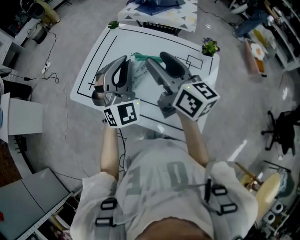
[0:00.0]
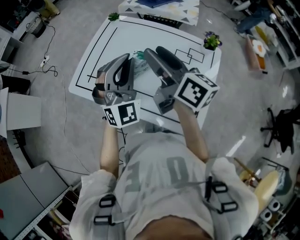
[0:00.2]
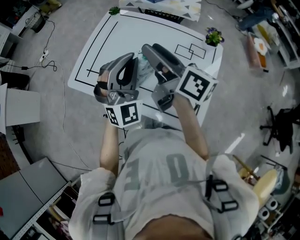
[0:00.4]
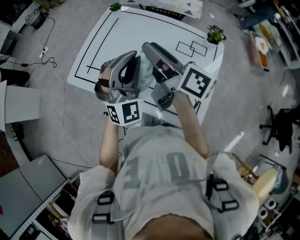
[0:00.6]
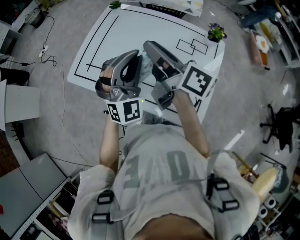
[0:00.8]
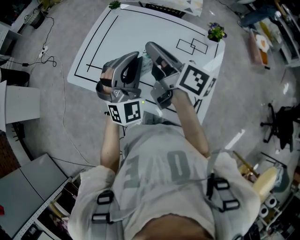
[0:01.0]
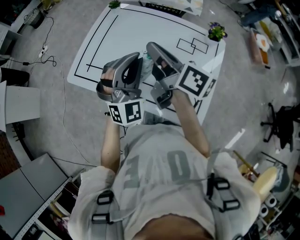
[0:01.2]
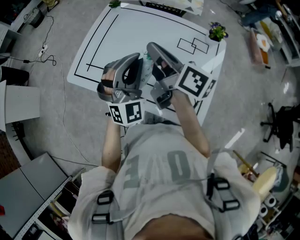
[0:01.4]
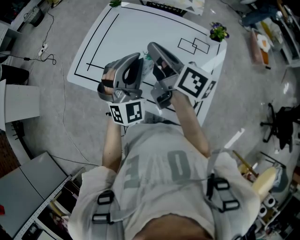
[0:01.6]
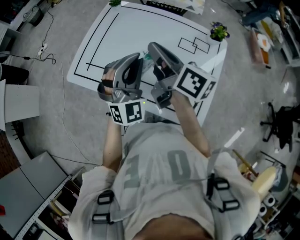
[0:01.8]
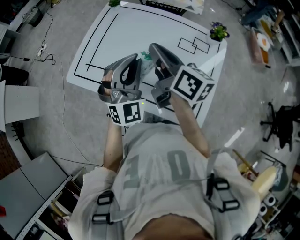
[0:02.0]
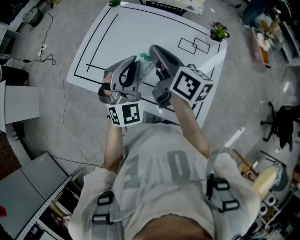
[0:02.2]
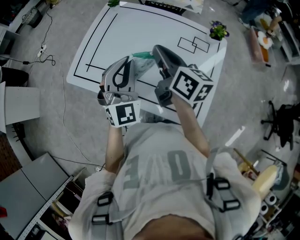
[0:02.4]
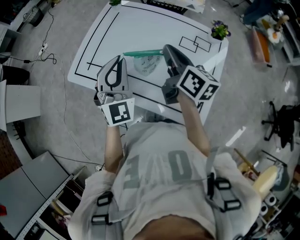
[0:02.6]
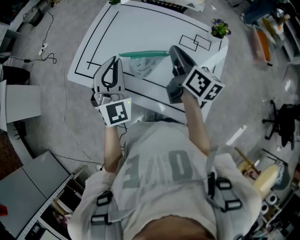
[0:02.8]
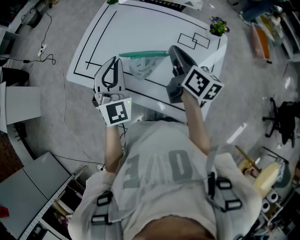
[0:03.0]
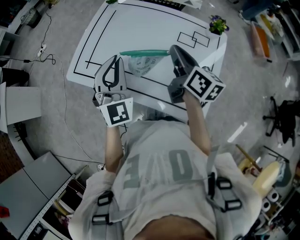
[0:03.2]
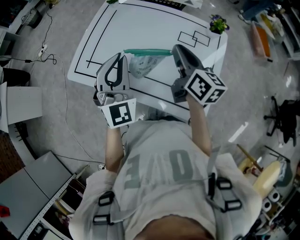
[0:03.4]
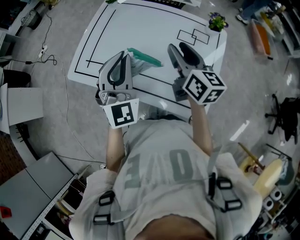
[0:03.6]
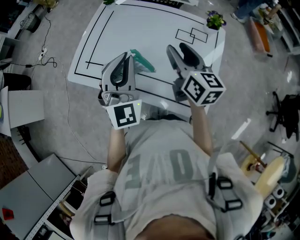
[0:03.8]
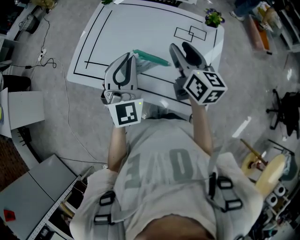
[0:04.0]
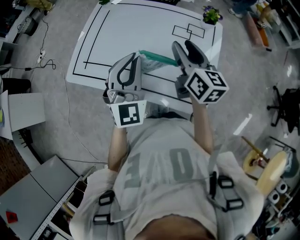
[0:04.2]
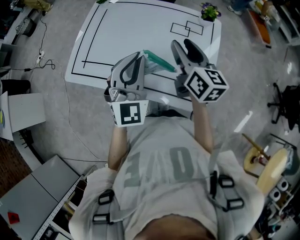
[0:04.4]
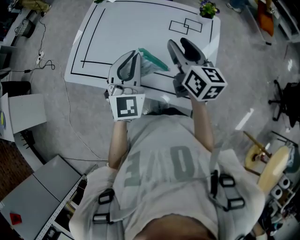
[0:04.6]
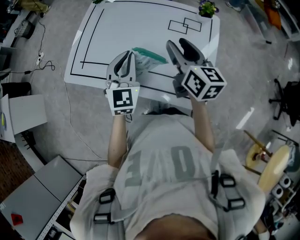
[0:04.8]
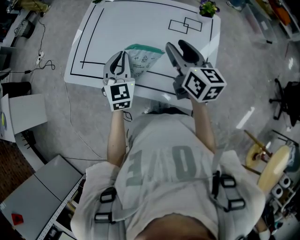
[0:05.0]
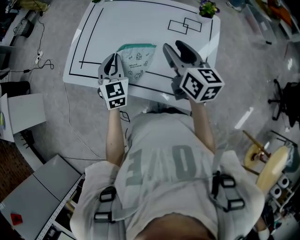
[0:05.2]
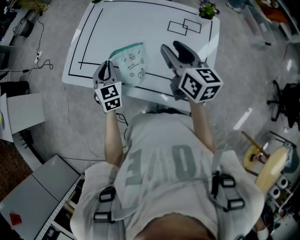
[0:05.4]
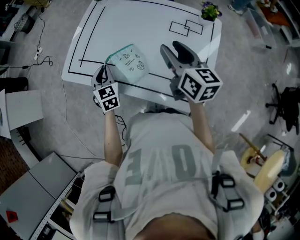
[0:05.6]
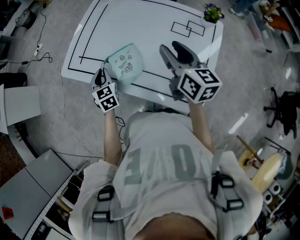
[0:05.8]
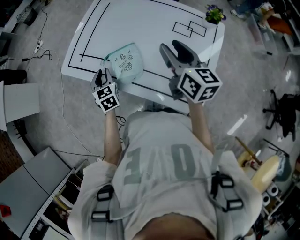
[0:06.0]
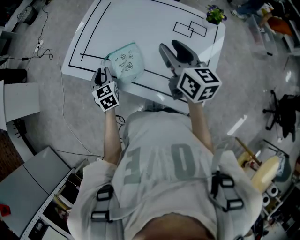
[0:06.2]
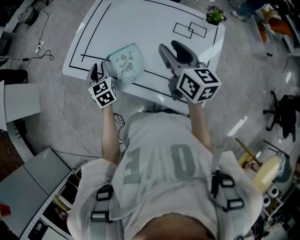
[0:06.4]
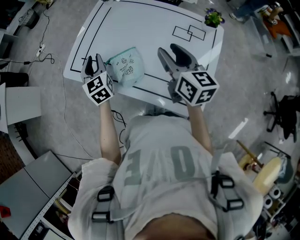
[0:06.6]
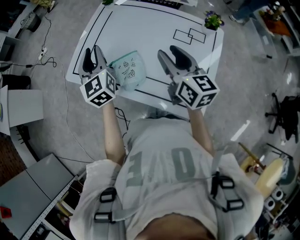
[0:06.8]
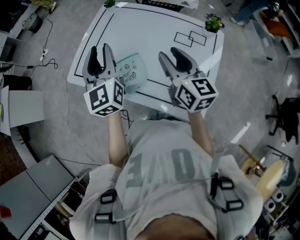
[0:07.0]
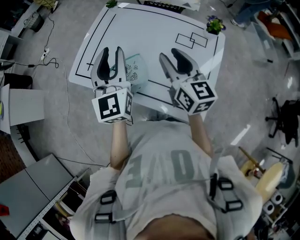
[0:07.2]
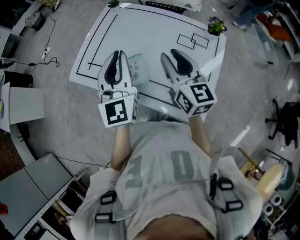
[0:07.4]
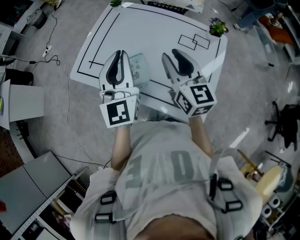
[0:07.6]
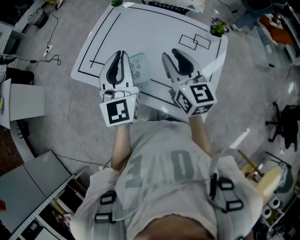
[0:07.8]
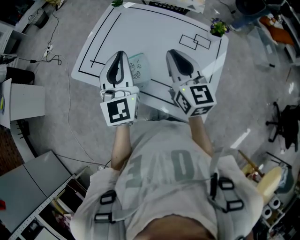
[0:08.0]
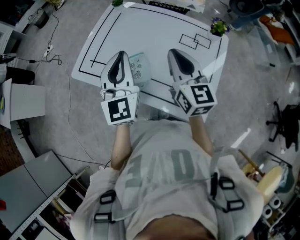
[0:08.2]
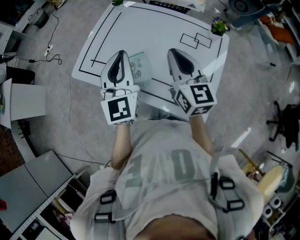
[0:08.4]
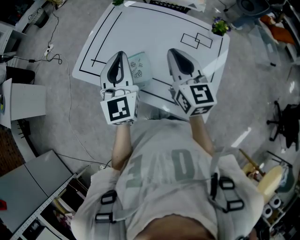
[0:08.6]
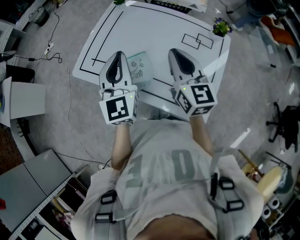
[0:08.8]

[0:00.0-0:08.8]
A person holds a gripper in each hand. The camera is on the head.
0:00.0 to 0:01.4: The right gripper moves roughly 5 cm, turns by roughly 20 degrees, and closes its fingers; the left gripper shifts about 5 cm downward.
0:01.4 to 0:03.0: The right gripper moves to the right and downward, approximately 10 cm, while the left gripper shifts about 5 cm to the left, and changes its angle by about 20 degrees.
0:03.0 to 0:04.4: The right gripper ends up roughly 5 cm from where it was, and opens its fingers. The left gripper goes about 10 cm to the right.
0:04.4 to 0:05.8: The left gripper travels downward and to the left by approximately 30 cm, and swivels about 50 degrees.
0:05.8 to 0:07.4: The left gripper moves upward and to the right, approximately 30 cm, tips its fingers upward by about 40 degrees, and opens, then closes once more.
0:07.4 to 0:08.8: The right gripper closes its fingers.

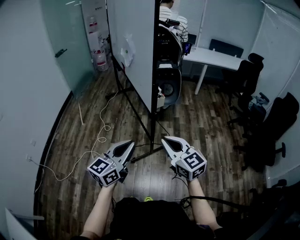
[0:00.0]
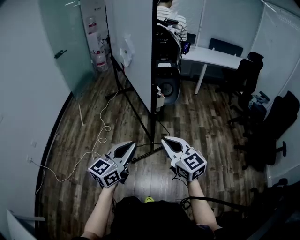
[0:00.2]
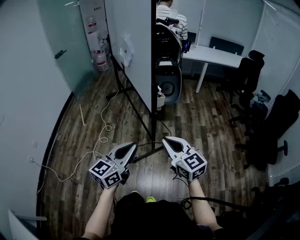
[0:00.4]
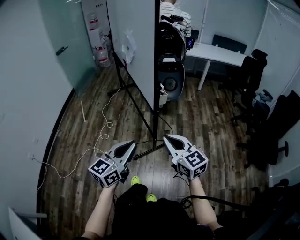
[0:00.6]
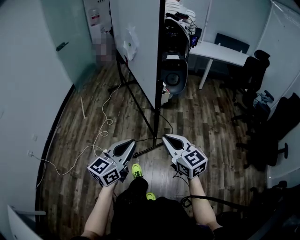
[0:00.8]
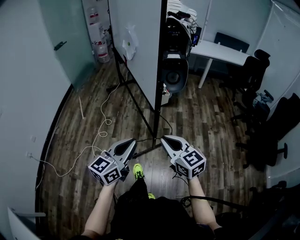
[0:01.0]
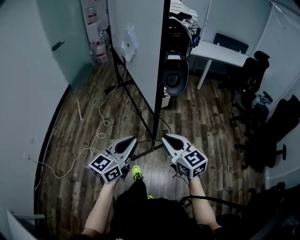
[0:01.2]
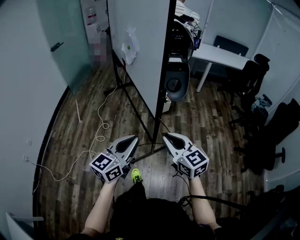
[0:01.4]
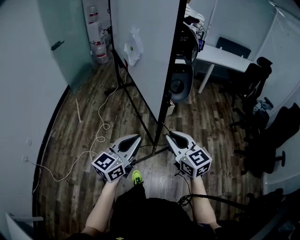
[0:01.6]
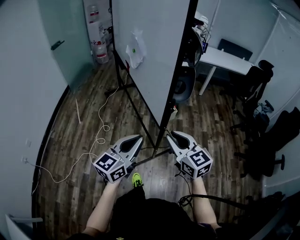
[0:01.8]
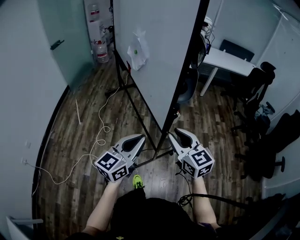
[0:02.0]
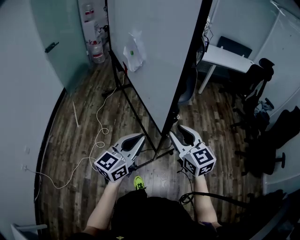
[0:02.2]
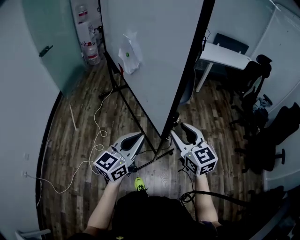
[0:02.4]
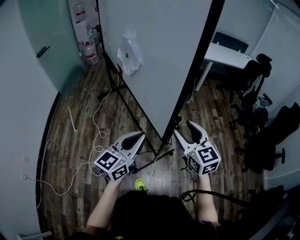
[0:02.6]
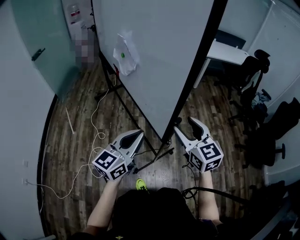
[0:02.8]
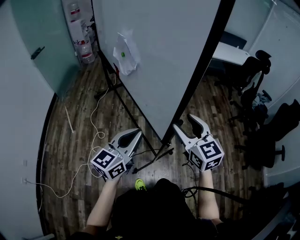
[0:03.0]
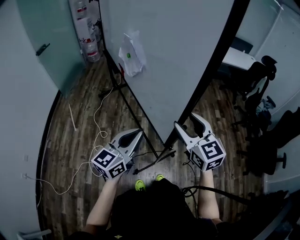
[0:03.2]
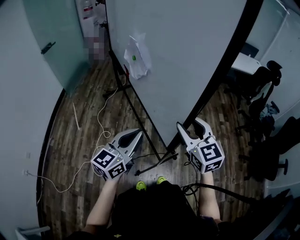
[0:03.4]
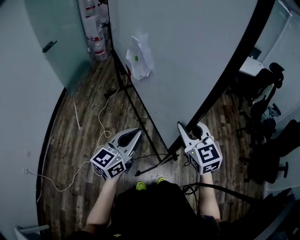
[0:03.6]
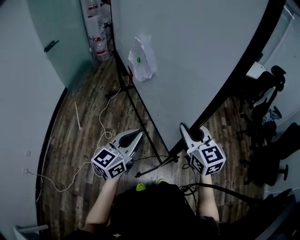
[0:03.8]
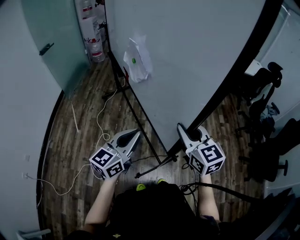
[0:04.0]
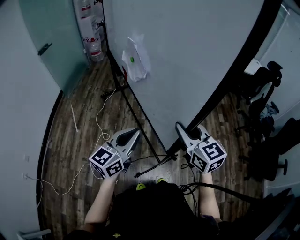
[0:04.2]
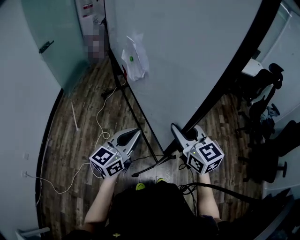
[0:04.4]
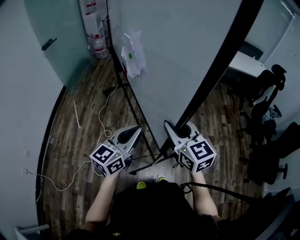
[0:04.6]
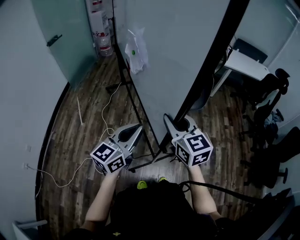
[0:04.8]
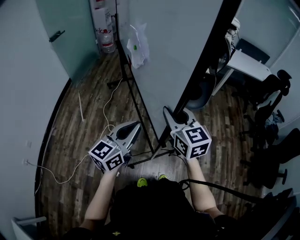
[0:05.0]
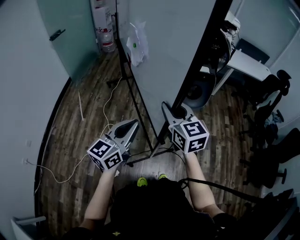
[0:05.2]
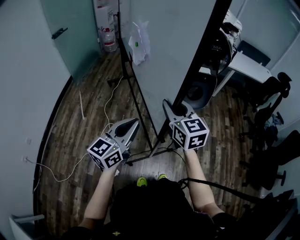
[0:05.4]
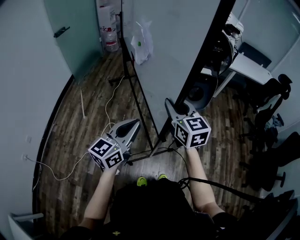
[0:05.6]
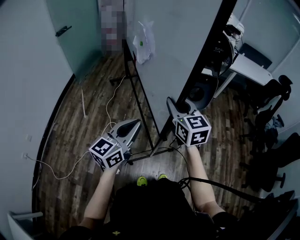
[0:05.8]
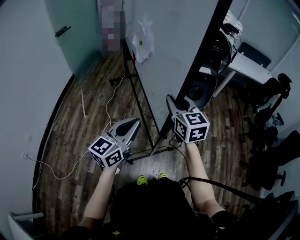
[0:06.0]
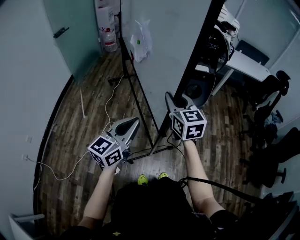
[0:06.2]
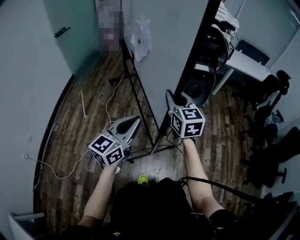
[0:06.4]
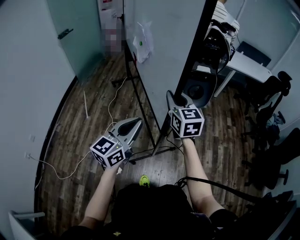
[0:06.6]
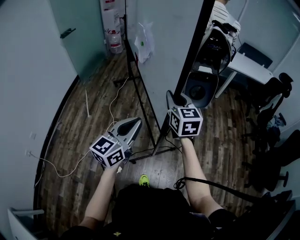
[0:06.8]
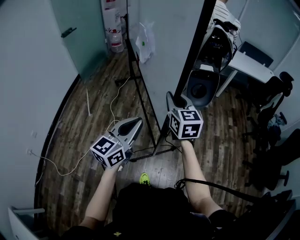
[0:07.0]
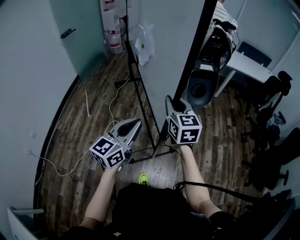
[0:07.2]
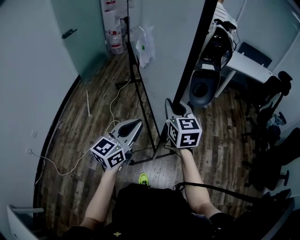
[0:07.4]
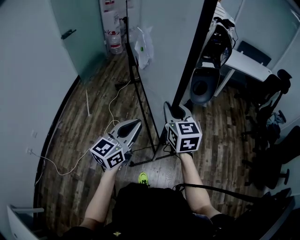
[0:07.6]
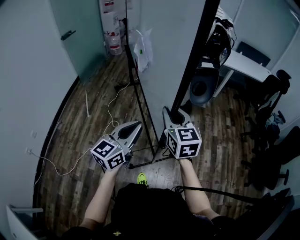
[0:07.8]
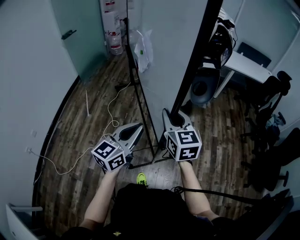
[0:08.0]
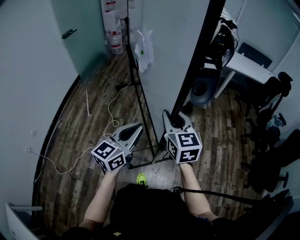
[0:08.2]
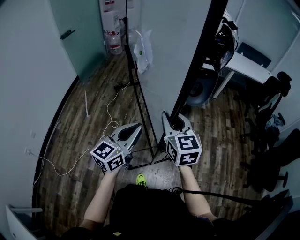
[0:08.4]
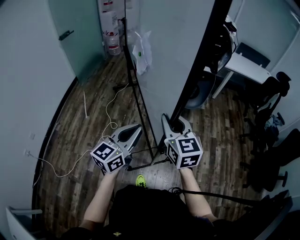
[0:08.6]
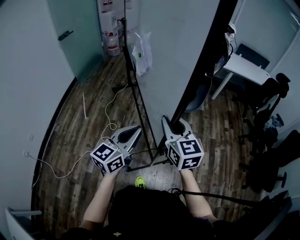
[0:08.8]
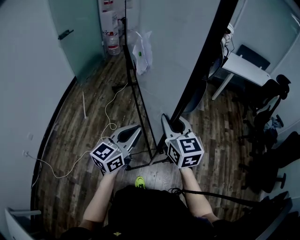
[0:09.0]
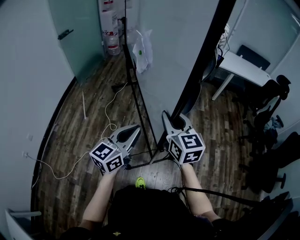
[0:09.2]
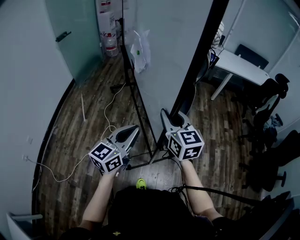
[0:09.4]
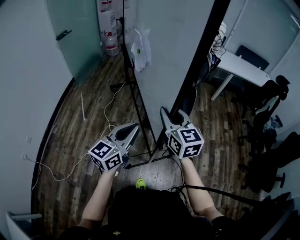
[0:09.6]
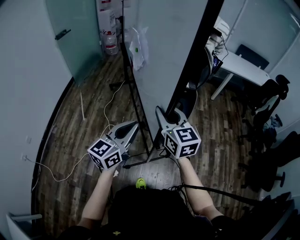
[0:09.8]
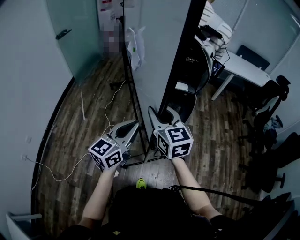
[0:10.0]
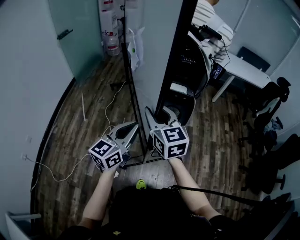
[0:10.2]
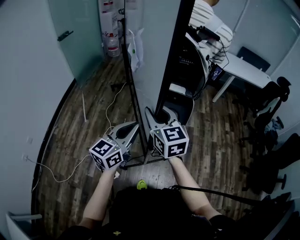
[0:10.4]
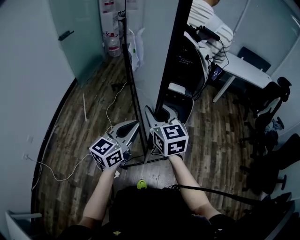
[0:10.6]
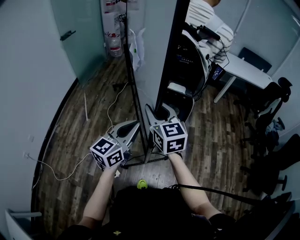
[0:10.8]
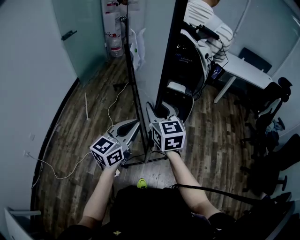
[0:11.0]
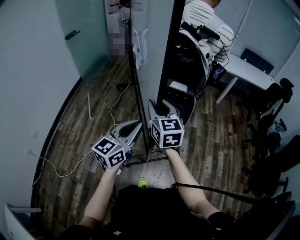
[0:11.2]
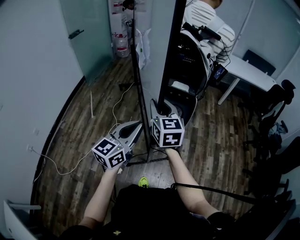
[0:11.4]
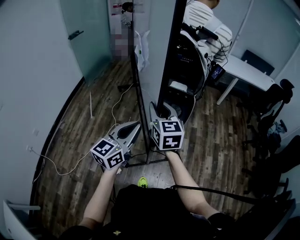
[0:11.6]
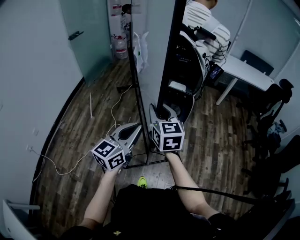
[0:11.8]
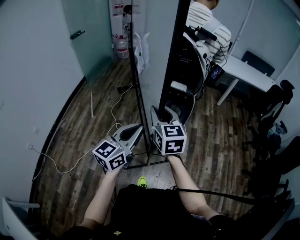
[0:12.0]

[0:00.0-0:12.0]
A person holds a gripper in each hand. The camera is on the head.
0:00.0 to 0:01.6: Both grippers travel together forward, about 10 cm.
0:01.6 to 0:03.0: Both grippers move forward, approximately 15 cm. The right gripper opens its fingers.
0:03.0 to 0:04.4: The grippers both shift forward by approximately 5 cm. The right gripper closes its fingers.
0:04.4 to 0:06.0: The right gripper is displaced to the left and forward by about 10 cm, while the left gripper heads to the left, covering approximately 10 cm.
0:06.0 to 0:07.6: The left gripper goes approximately 10 cm backward and to the right. The right gripper shifts approximately 10 cm backward.
0:07.6 to 0:09.0: The grippers stay close to where they were, moving slightly.
0:09.0 to 0:10.4: The right gripper is displaced to the left by some 10 cm; the left gripper changes place by about 5 cm.
0:10.4 to 0:12.0: The left gripper is displaced backward by about 10 cm, while the right gripper shifts about 5 cm backward.

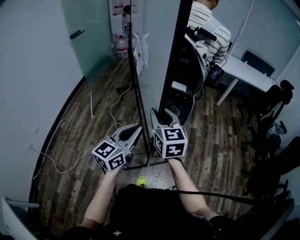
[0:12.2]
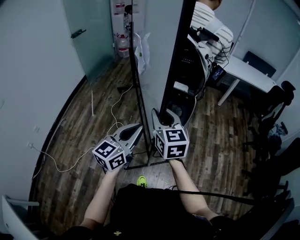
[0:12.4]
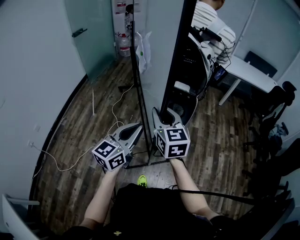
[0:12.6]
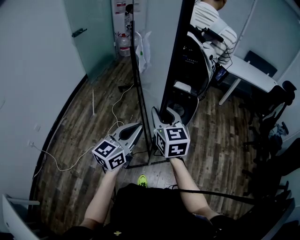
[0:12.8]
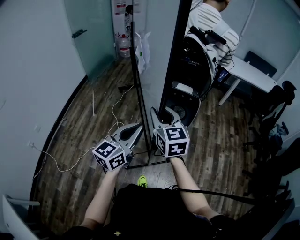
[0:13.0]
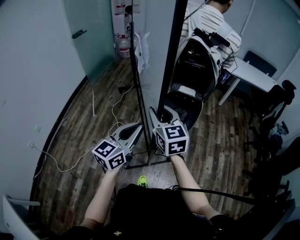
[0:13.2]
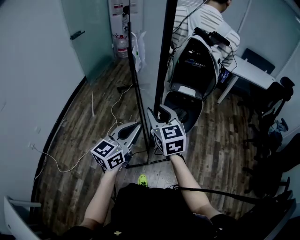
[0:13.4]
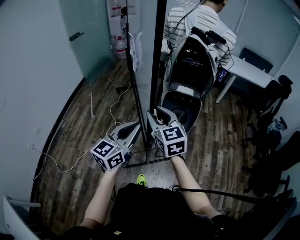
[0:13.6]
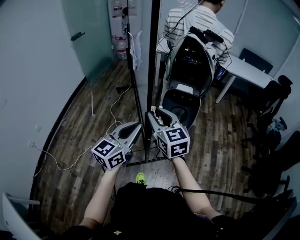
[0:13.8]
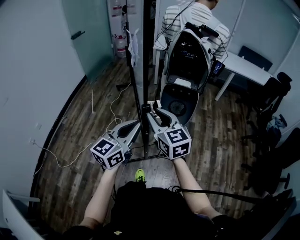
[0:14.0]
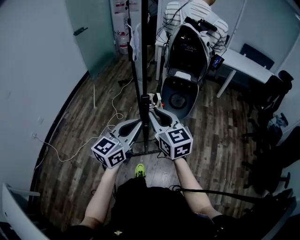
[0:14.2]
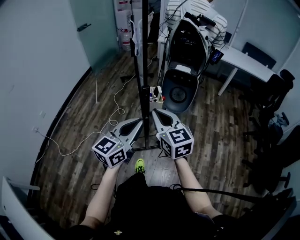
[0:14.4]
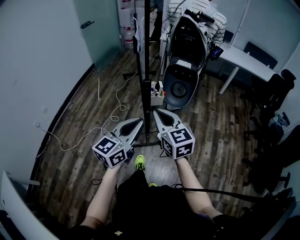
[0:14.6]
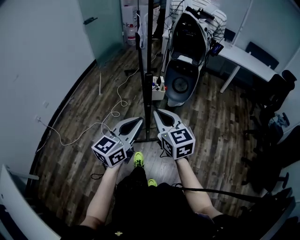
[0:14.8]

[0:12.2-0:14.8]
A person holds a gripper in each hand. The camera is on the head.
0:12.2 to 0:13.4: The grippers stay close to where they were, moving slightly.
0:13.4 to 0:14.8: The two grippers go about 20 cm backward. The right gripper closes.
